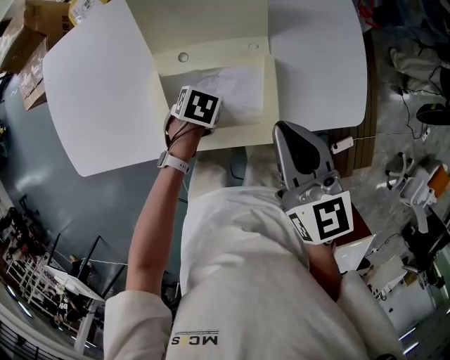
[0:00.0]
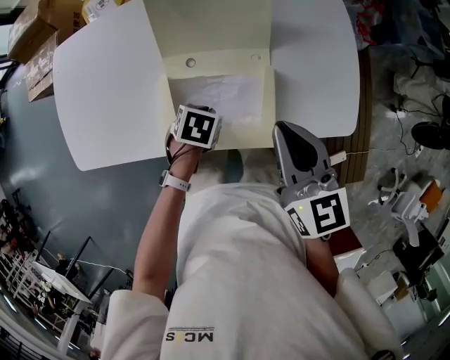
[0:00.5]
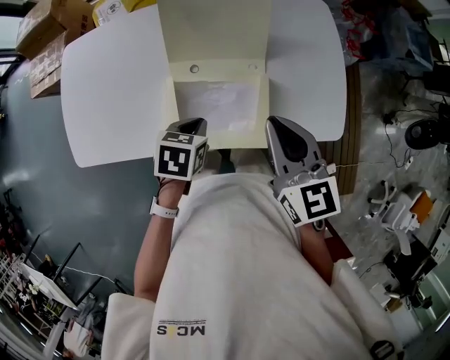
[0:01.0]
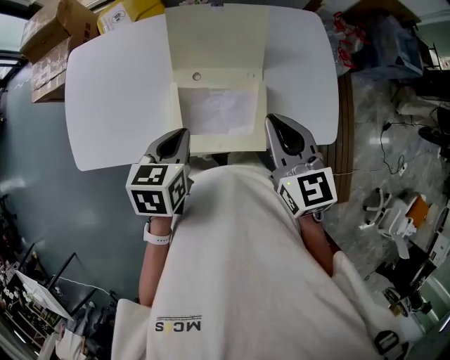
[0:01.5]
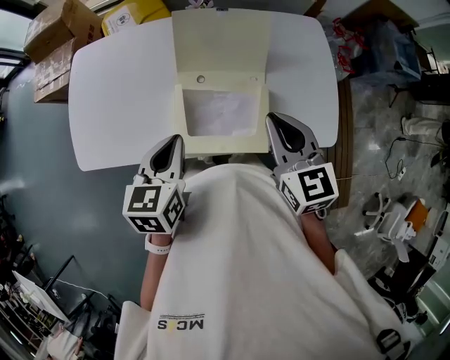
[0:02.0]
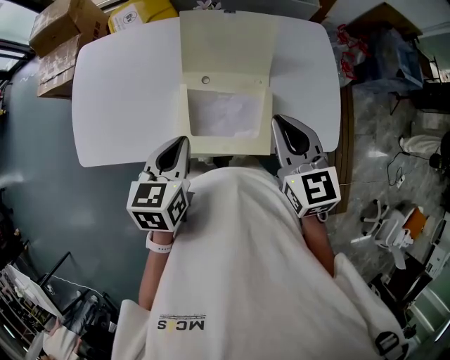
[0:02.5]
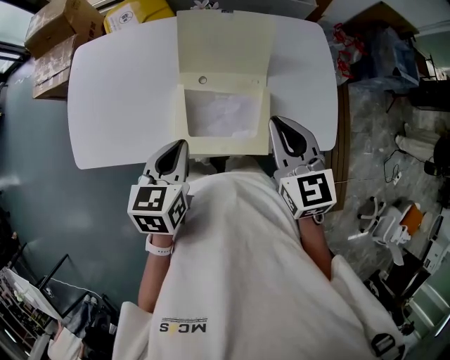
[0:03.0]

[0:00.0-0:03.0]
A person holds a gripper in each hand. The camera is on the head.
0:00.0 to 0:01.5: The right gripper is displaced upward by approximately 5 cm. Meanwhile the left gripper moves upward, roughly 25 cm, and swivels roughly 40 degrees.
0:01.5 to 0:03.0: The grippers make only small movements.

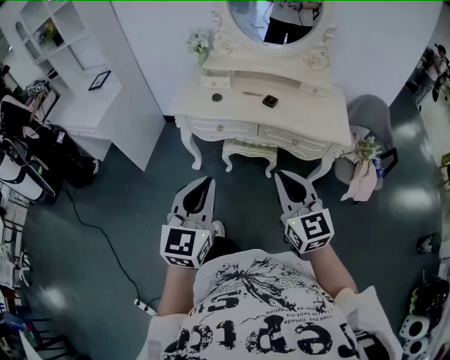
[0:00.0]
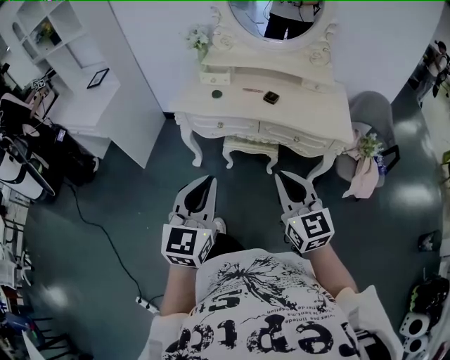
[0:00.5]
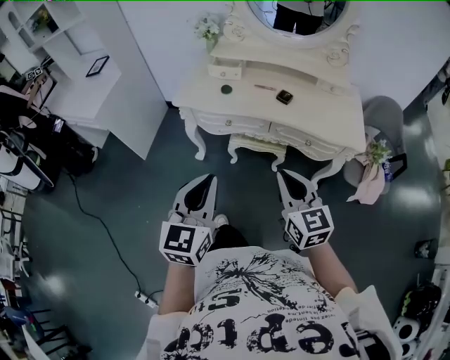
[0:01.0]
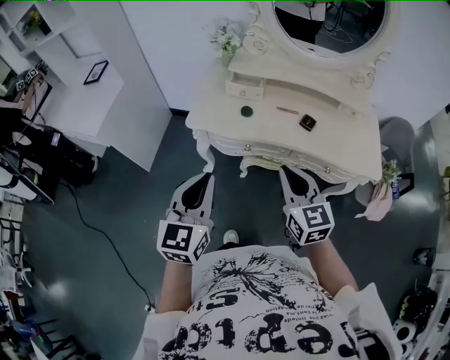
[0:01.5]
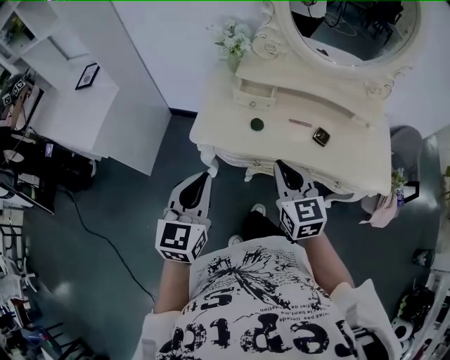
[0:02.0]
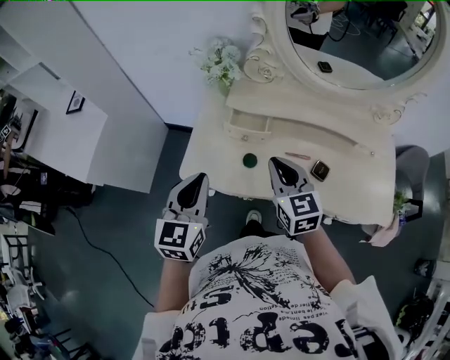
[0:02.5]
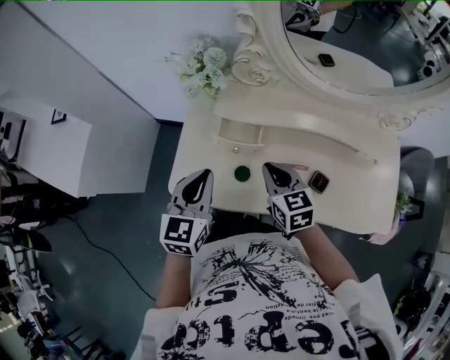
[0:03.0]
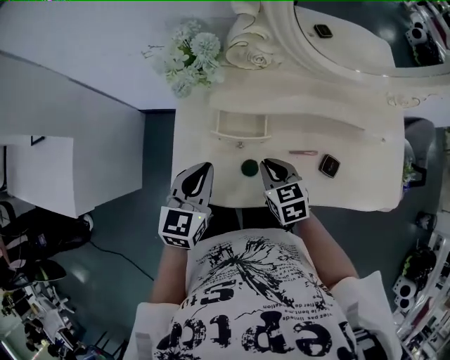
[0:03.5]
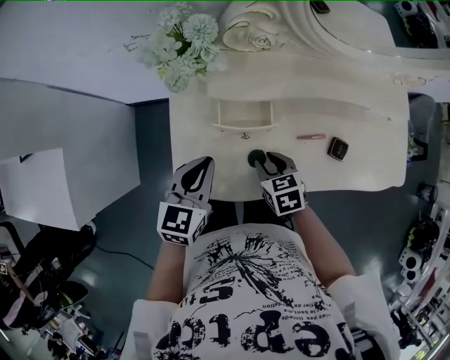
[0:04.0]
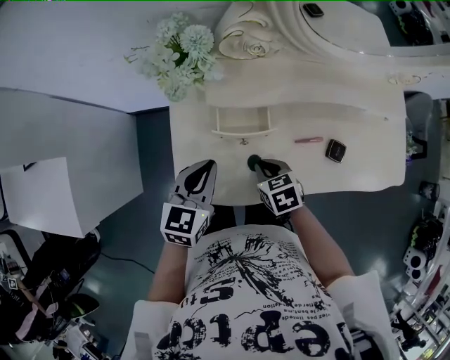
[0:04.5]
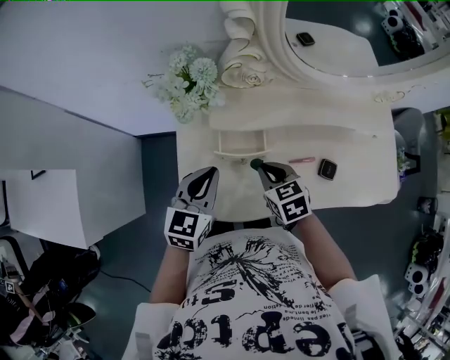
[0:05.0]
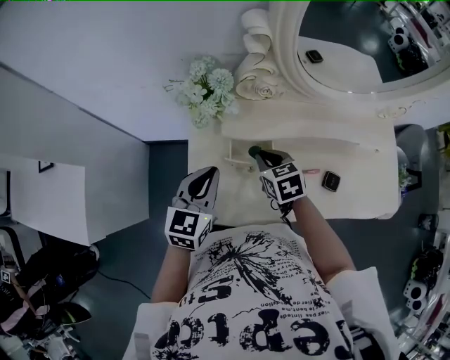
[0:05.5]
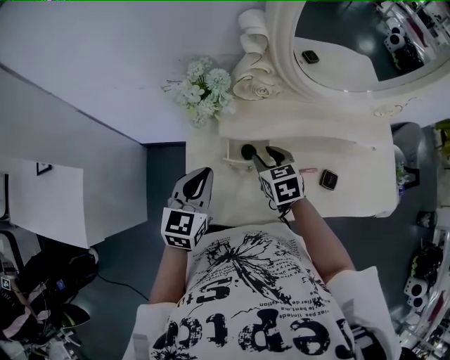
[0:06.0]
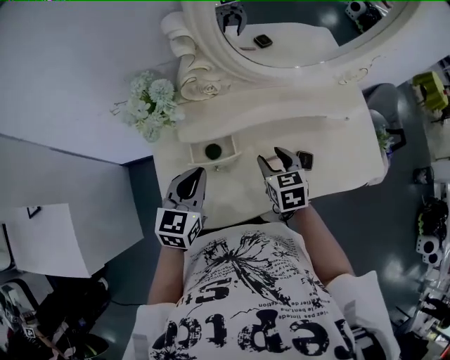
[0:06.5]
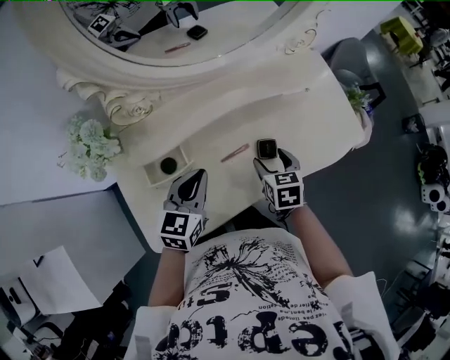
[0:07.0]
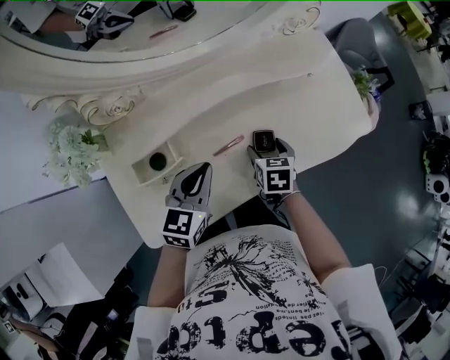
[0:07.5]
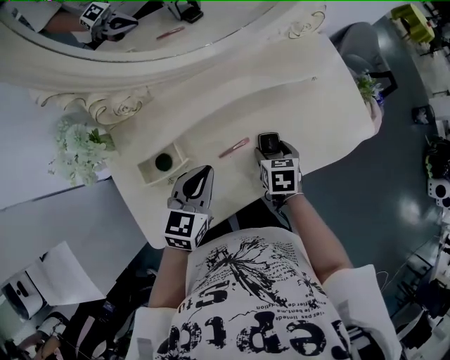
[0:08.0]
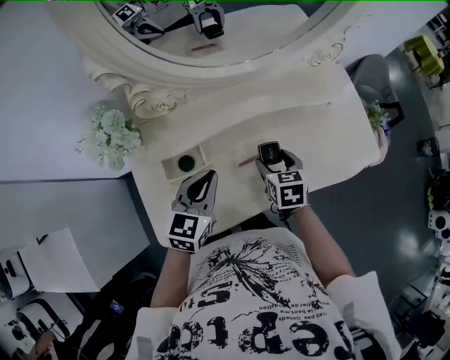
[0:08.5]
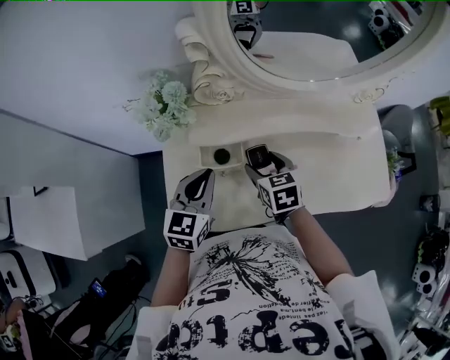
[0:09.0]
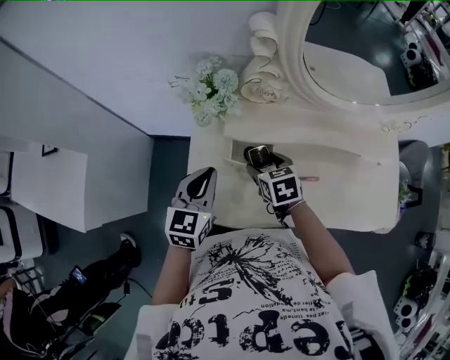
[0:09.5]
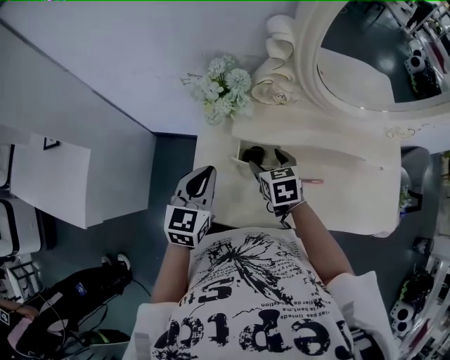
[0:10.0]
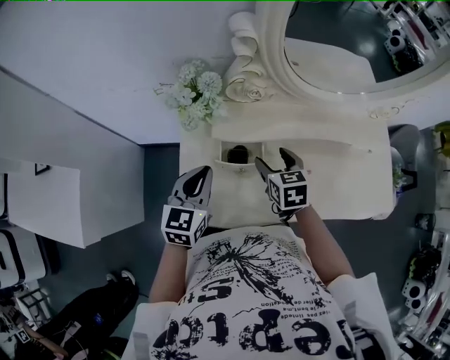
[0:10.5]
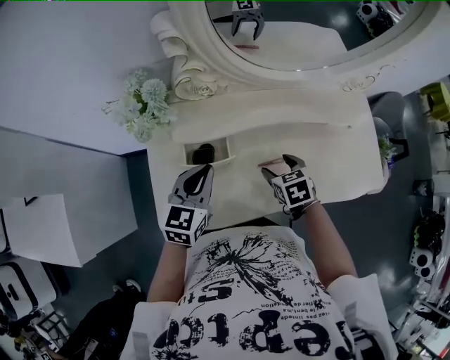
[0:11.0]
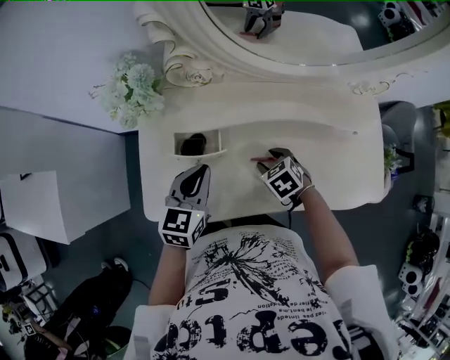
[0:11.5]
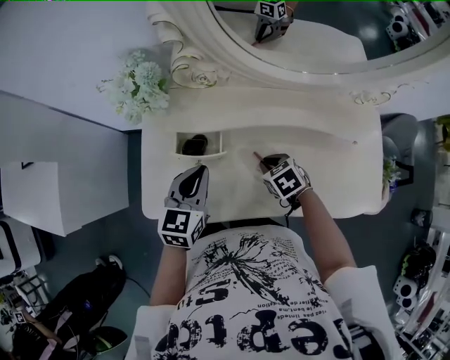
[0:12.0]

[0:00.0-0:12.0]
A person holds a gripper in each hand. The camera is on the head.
0:00.0 to 0:02.0: Both grippers move forward and to the left, some 40 cm.
0:02.0 to 0:04.0: The right gripper is displaced downward and forward by about 30 cm, and angles its fingers downward, by approximately 40 degrees. Meanwhile the left gripper shifts approximately 35 cm forward and downward, and rotates roughly 30 degrees.
0:04.0 to 0:06.0: The right gripper is displaced forward and upward by approximately 15 cm; the left gripper goes about 5 cm upward.
0:06.0 to 0:08.0: The left gripper changes place by about 25 cm, and swivels approximately 30 degrees, while the right gripper moves about 30 cm, rotates approximately 40 degrees, and opens its fingers.
0:08.0 to 0:10.0: The left gripper moves roughly 25 cm, and rotates about 40 degrees. The right gripper moves roughly 35 cm, and turns by some 40 degrees.
0:10.0 to 0:12.0: The right gripper is displaced to the right and downward by roughly 20 cm, changes its angle by some 20 degrees, and closes its fingers. Meanwhile the left gripper travels to the right by approximately 15 cm.

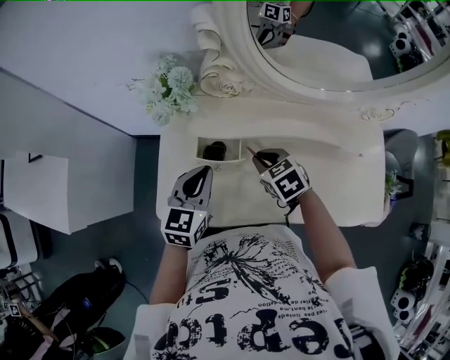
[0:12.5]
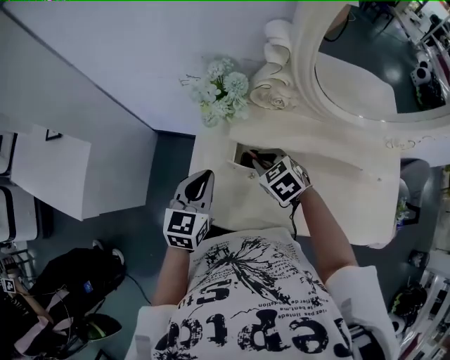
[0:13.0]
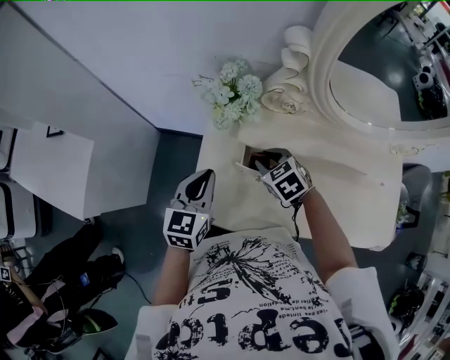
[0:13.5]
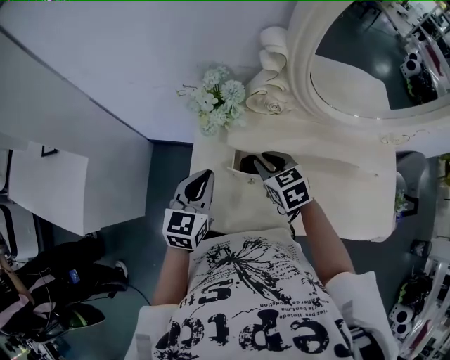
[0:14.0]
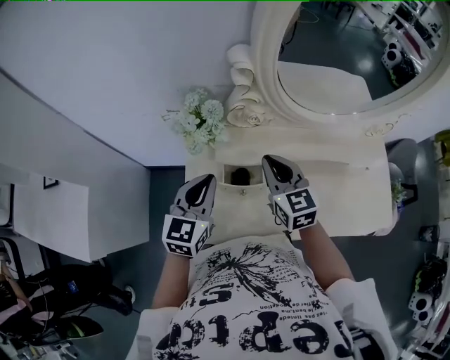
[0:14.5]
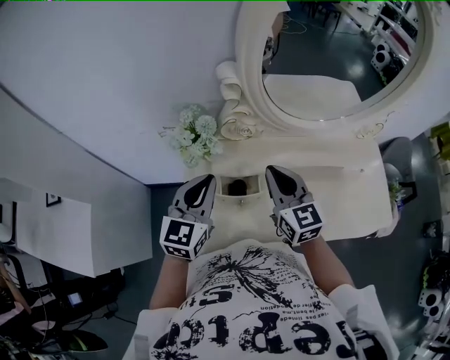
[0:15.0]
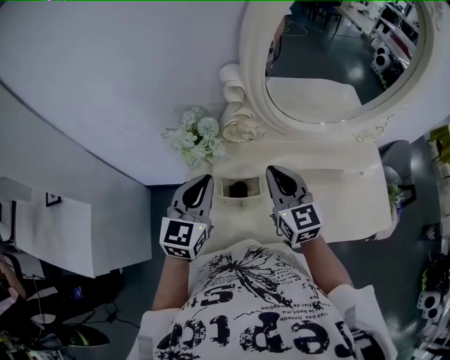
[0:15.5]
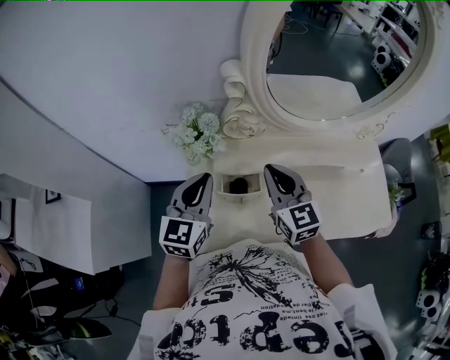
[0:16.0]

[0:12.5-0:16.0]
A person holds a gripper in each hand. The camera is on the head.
0:12.5 to 0:14.5: The left gripper shifts about 10 cm to the left and upward, while the right gripper moves upward and to the left, about 15 cm, and tilts its fingers roughly 30 degrees upward.
0:14.5 to 0:16.0: The grippers make only small movements.

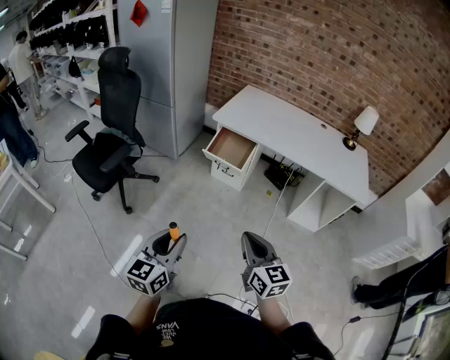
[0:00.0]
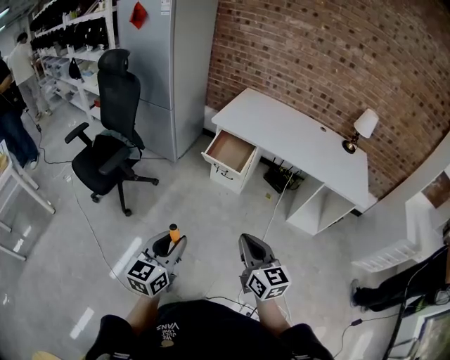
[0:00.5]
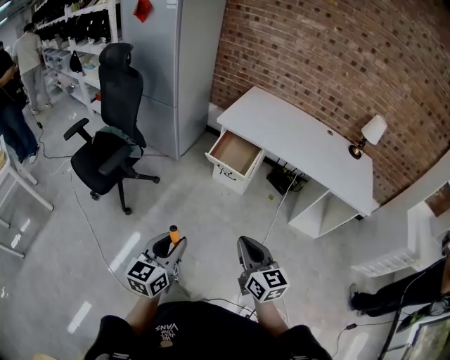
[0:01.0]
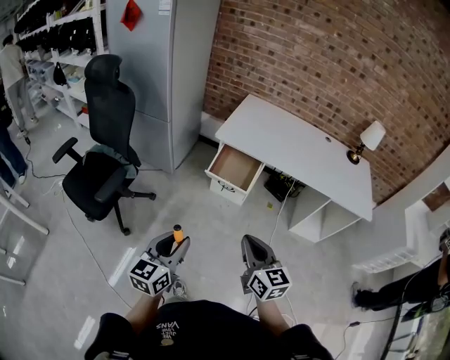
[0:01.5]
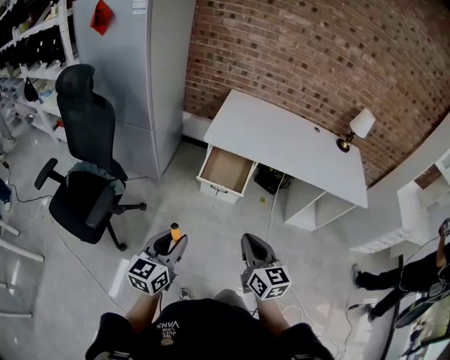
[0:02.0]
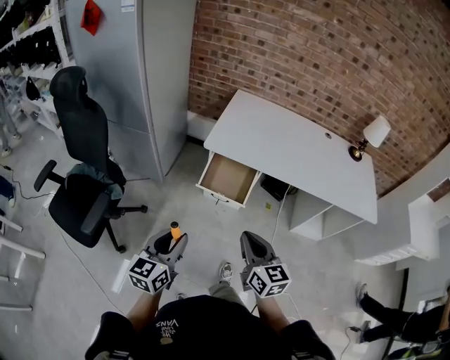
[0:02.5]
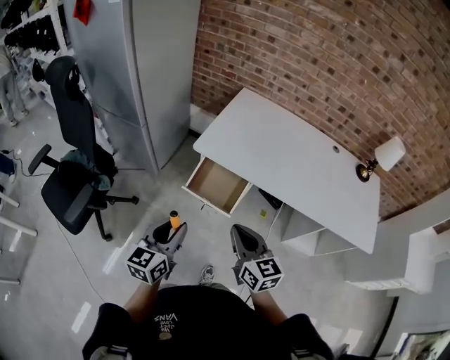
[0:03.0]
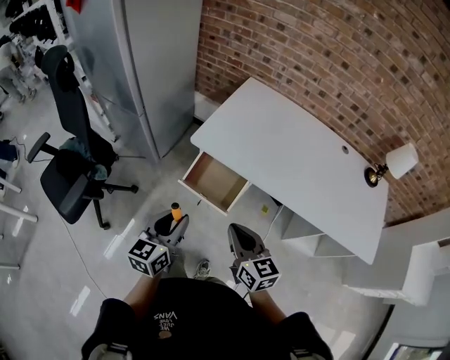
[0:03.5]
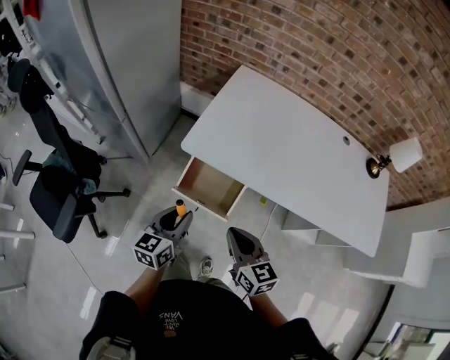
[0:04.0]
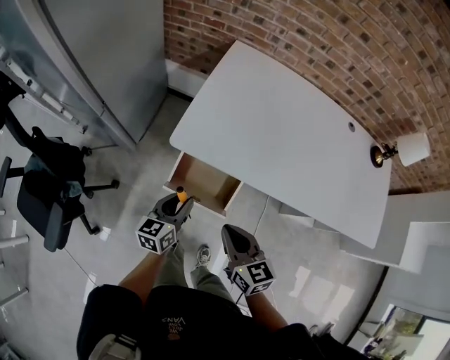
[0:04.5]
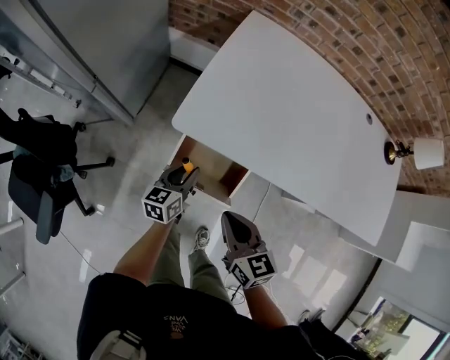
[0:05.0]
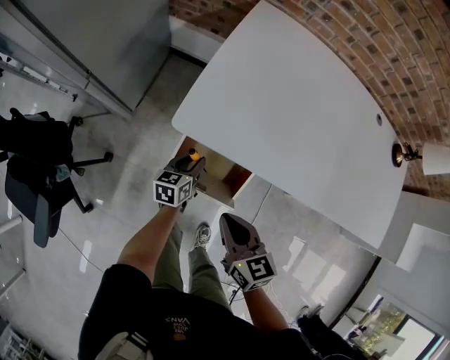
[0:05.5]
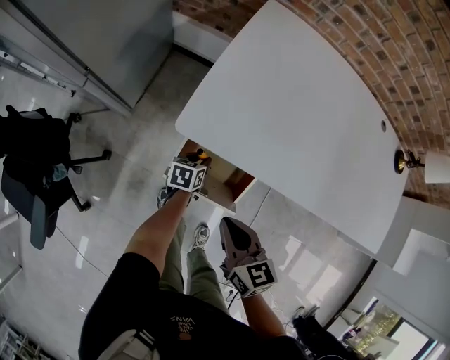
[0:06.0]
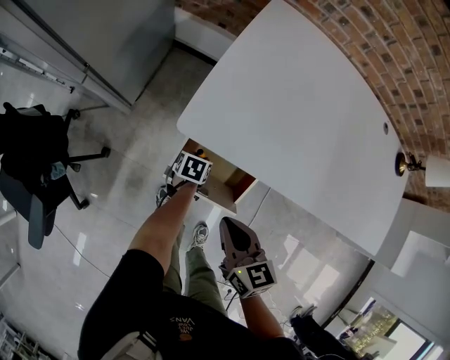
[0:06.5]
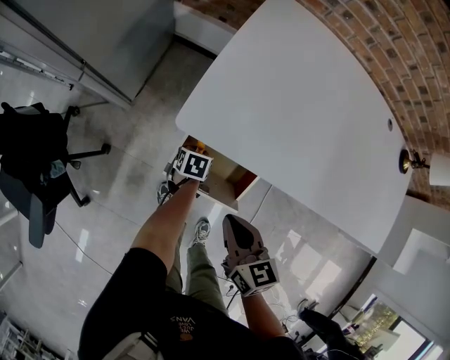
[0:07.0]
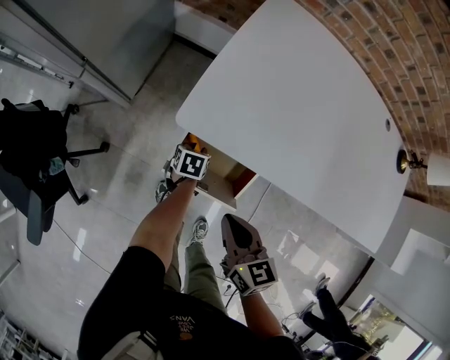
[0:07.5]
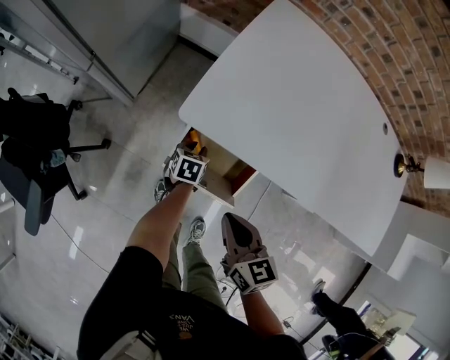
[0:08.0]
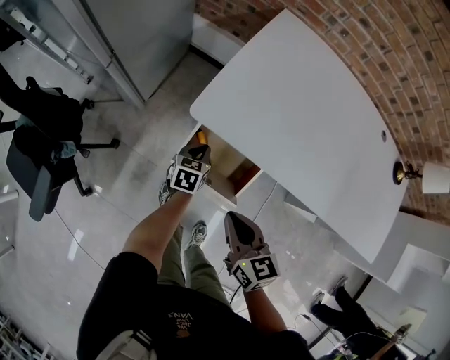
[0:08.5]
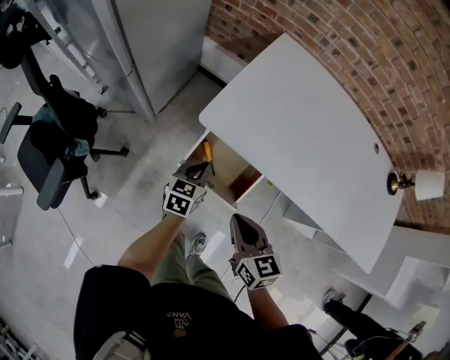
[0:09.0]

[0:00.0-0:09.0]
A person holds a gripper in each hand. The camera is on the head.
0:00.0 to 0:02.0: The grippers both shift forward and to the left by some 30 cm.
0:02.0 to 0:04.5: The right gripper goes about 40 cm forward. The left gripper travels forward, downward and to the right by roughly 50 cm.
0:04.5 to 0:07.0: The right gripper shifts approximately 10 cm downward and forward. Meanwhile the left gripper shifts about 30 cm downward and forward, and angles its fingers downward, by approximately 40 degrees.
0:07.0 to 0:09.0: The right gripper goes approximately 10 cm upward and backward. The left gripper heads upward, covering some 20 cm, swivels roughly 30 degrees, and closes.
